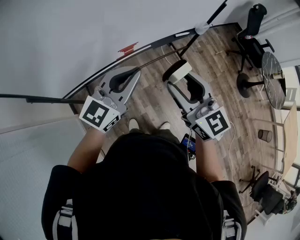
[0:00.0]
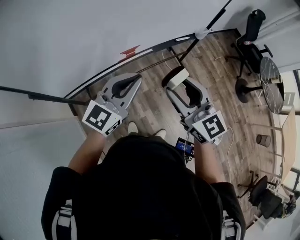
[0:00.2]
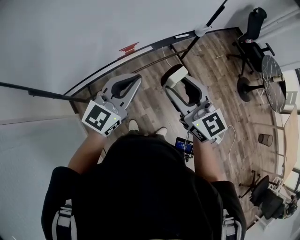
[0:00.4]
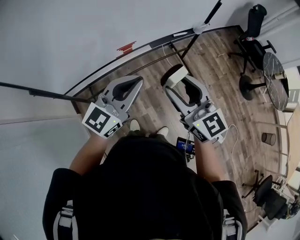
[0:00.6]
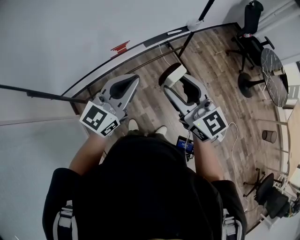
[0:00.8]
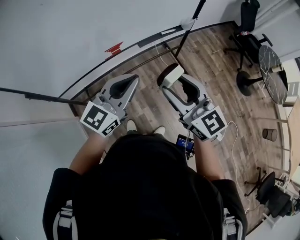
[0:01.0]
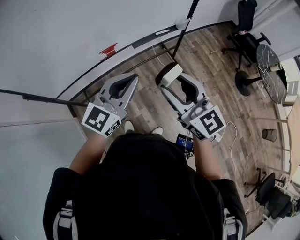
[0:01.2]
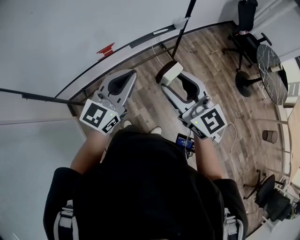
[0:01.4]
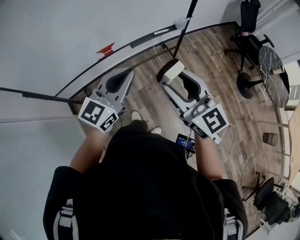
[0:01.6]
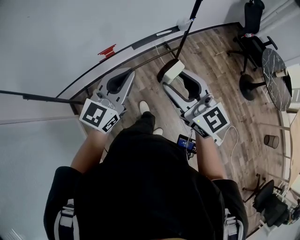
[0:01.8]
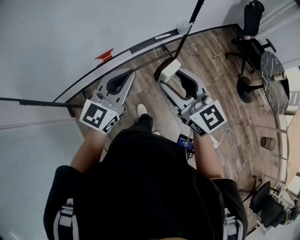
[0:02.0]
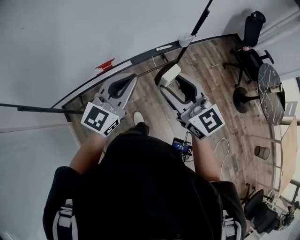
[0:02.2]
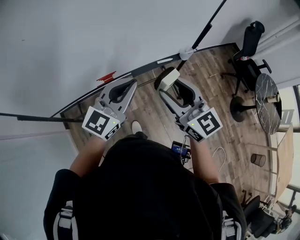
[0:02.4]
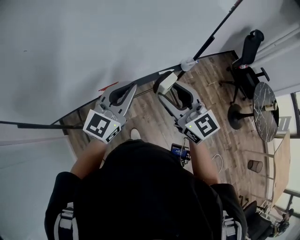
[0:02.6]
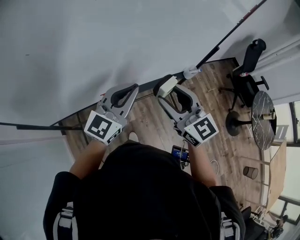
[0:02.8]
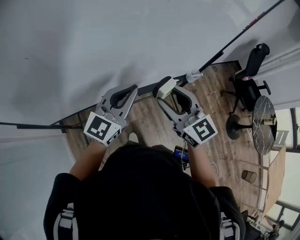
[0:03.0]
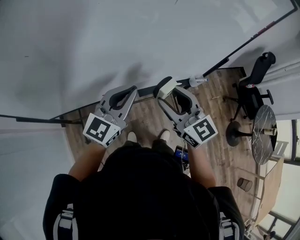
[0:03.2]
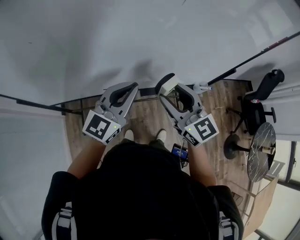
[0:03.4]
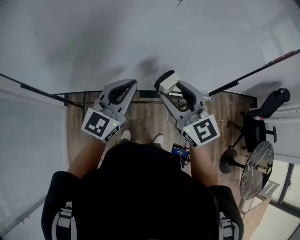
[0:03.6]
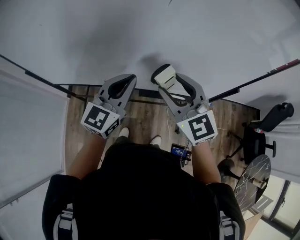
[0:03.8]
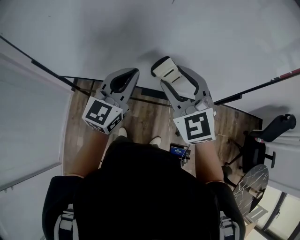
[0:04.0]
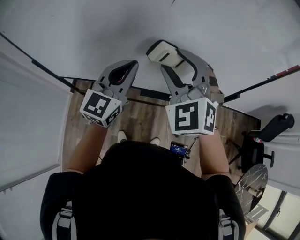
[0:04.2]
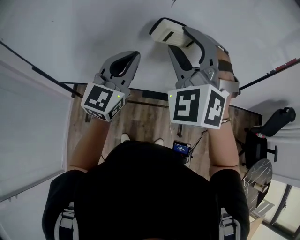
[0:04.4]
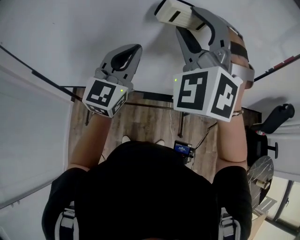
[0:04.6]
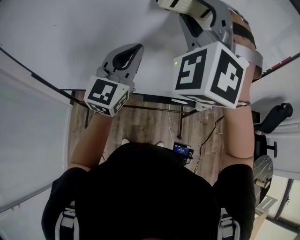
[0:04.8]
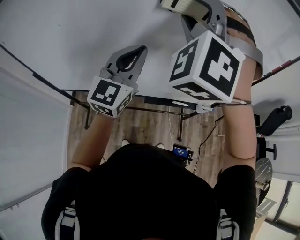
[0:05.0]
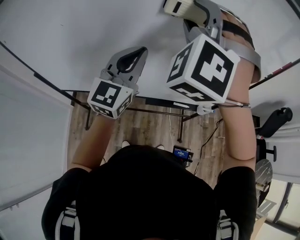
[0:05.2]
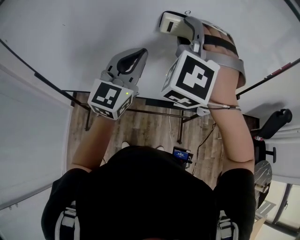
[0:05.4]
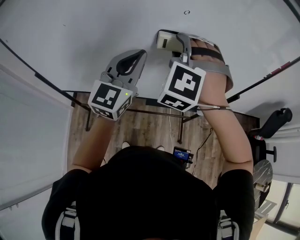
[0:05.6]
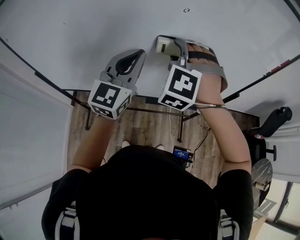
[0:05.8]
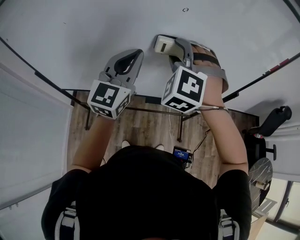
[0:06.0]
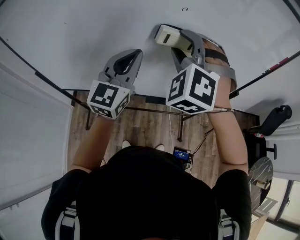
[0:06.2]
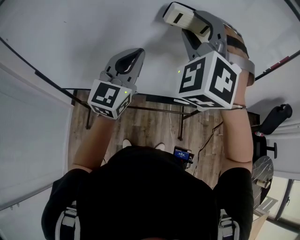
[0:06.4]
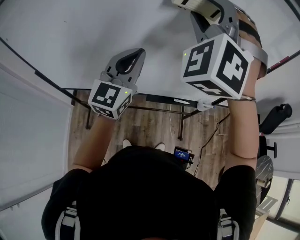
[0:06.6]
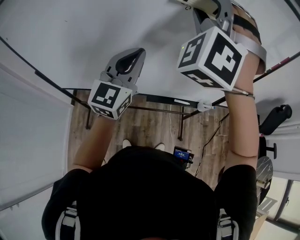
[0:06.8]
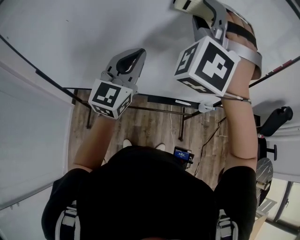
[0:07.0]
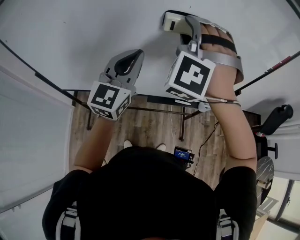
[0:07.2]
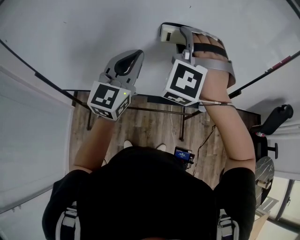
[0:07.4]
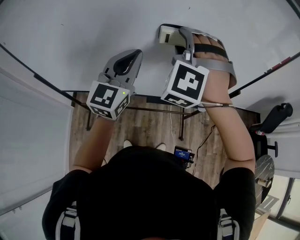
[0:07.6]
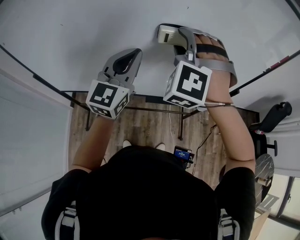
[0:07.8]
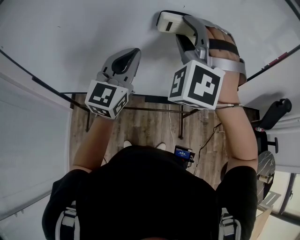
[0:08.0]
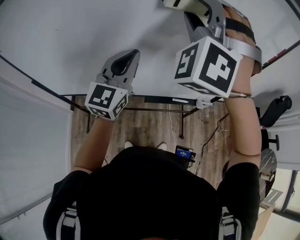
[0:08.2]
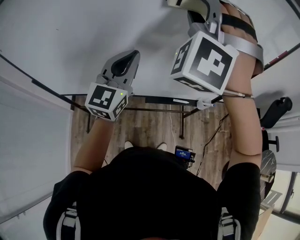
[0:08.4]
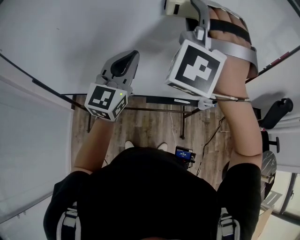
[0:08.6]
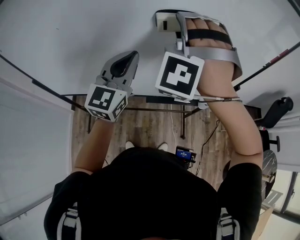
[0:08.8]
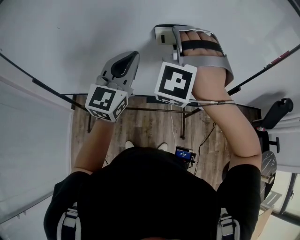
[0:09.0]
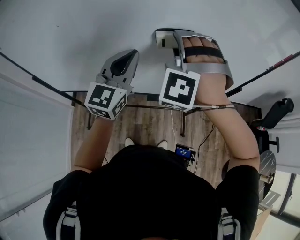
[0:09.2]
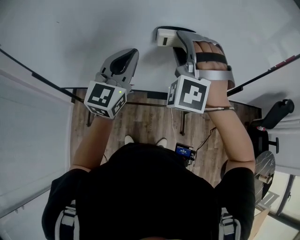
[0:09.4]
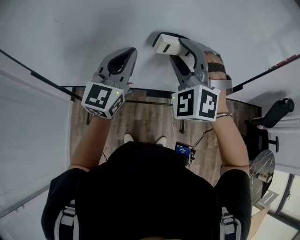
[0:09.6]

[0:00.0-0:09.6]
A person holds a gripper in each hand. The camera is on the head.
0:00.0 to 0:01.6: The two grippers go some 20 cm to the right.
0:01.6 to 0:03.2: Both grippers travel together forward, some 30 cm.
0:03.2 to 0:04.8: The right gripper goes about 30 cm upward and forward, and rotates around the line of its fingers by roughly 80 degrees, counterclockwise from behind, while the left gripper is displaced upward and forward by approximately 15 cm, and turns by approximately 30 degrees.
0:04.8 to 0:06.4: The right gripper reaches about 15 cm downward, then returns.
0:06.4 to 0:08.0: The right gripper moves up and down over some 15 cm, changing direction 2 times.
0:08.0 to 0:09.6: The right gripper travels downward by some 10 cm.

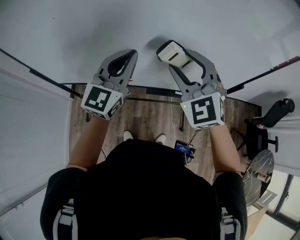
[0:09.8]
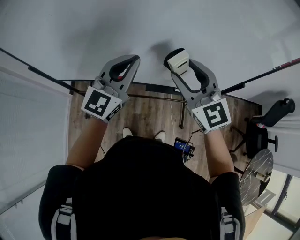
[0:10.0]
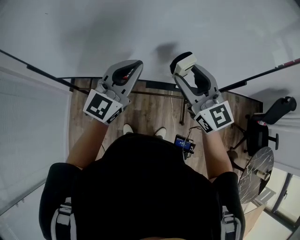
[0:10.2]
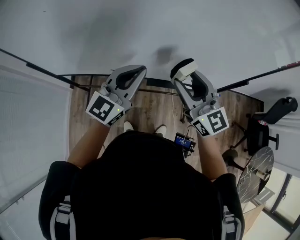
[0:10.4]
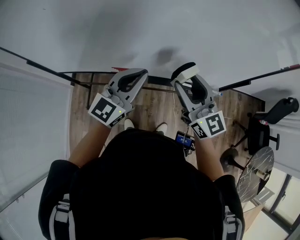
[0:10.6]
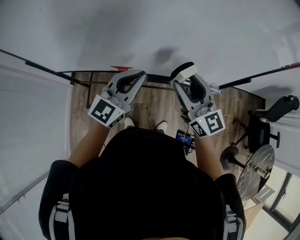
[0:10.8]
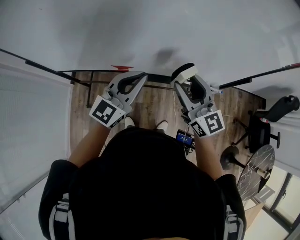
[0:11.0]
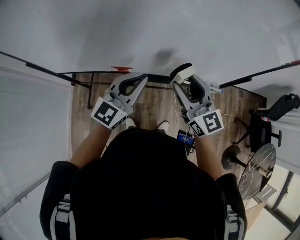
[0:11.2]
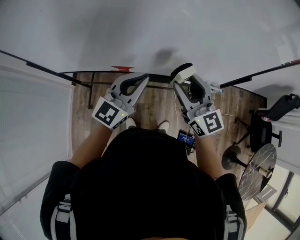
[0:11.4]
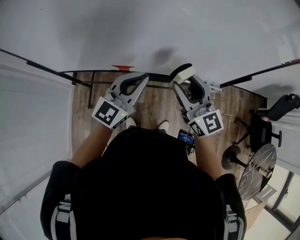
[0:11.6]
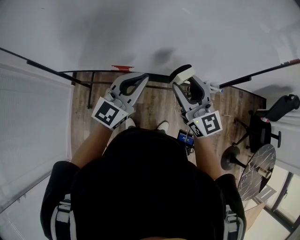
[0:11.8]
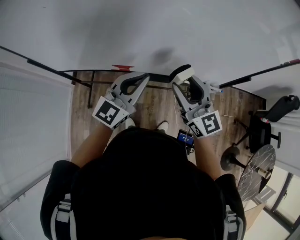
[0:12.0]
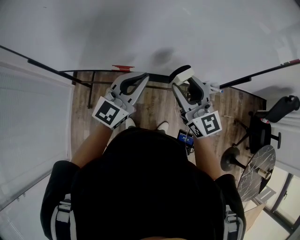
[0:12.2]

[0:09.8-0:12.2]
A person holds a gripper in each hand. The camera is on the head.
0:09.8 to 0:11.0: The right gripper moves downward and to the right, about 10 cm, and twists some 50 degrees clockwise, seen from behind; the left gripper travels downward and backward by roughly 10 cm.
0:11.0 to 0:12.2: The grippers make only small movements.

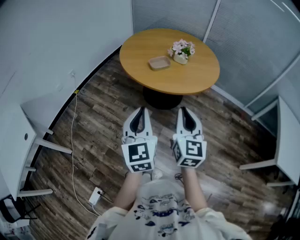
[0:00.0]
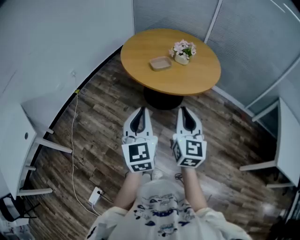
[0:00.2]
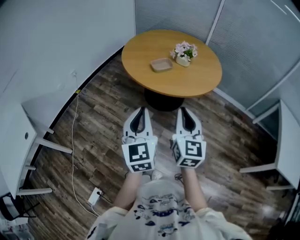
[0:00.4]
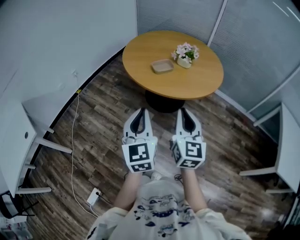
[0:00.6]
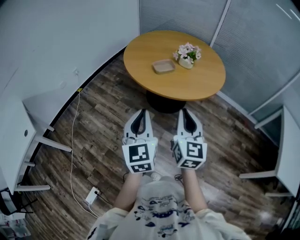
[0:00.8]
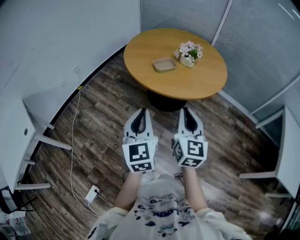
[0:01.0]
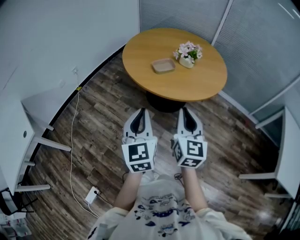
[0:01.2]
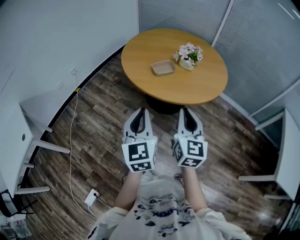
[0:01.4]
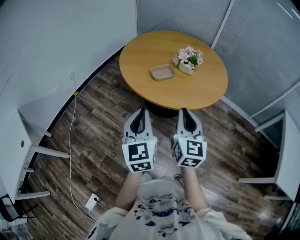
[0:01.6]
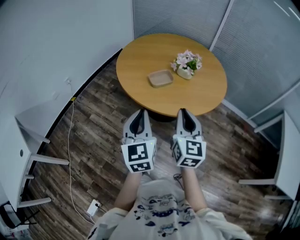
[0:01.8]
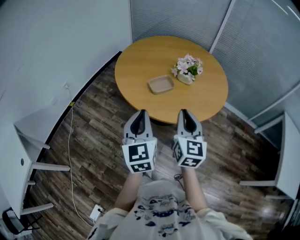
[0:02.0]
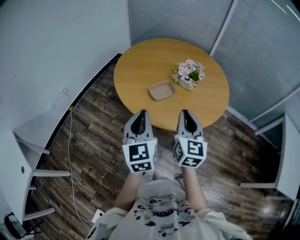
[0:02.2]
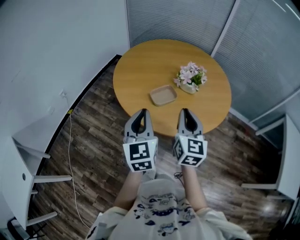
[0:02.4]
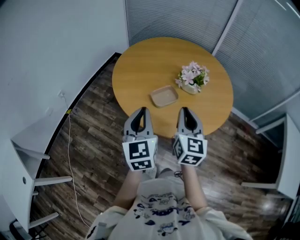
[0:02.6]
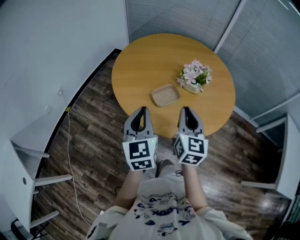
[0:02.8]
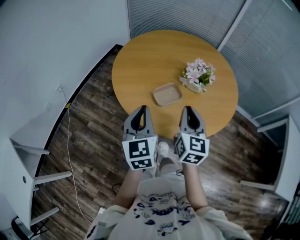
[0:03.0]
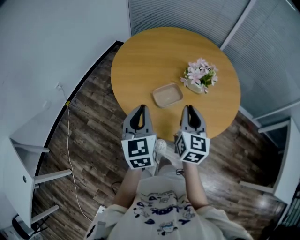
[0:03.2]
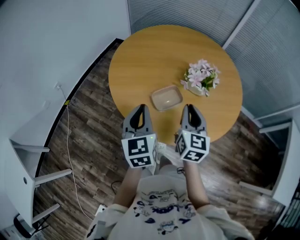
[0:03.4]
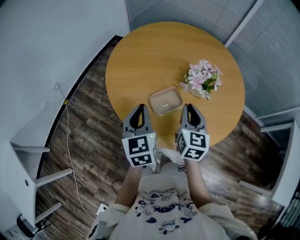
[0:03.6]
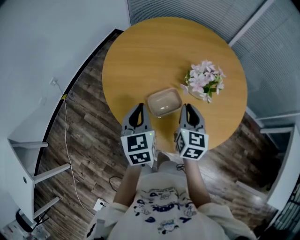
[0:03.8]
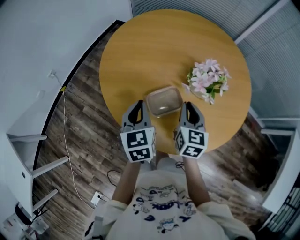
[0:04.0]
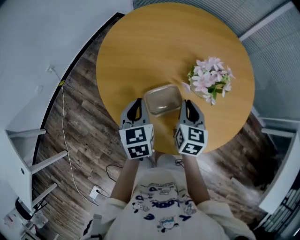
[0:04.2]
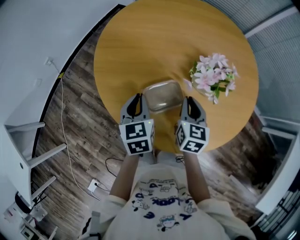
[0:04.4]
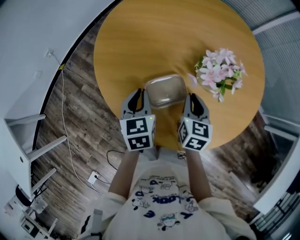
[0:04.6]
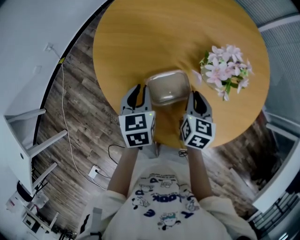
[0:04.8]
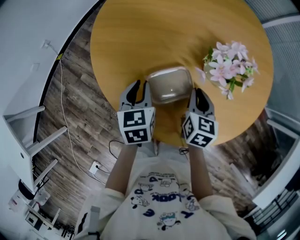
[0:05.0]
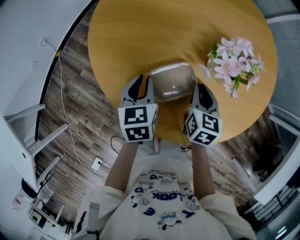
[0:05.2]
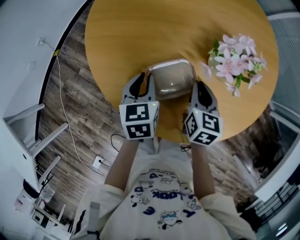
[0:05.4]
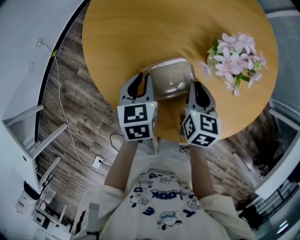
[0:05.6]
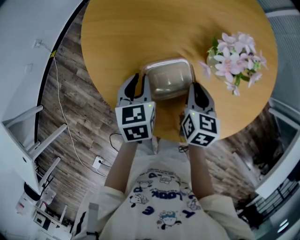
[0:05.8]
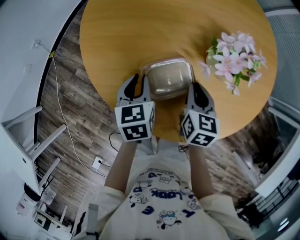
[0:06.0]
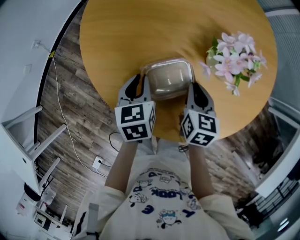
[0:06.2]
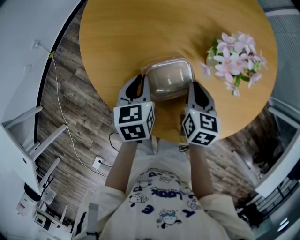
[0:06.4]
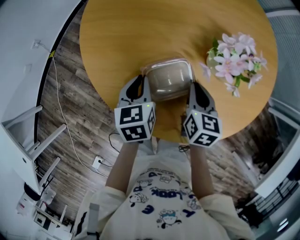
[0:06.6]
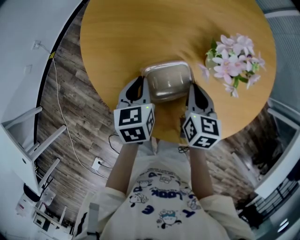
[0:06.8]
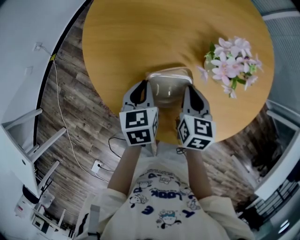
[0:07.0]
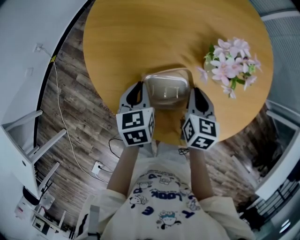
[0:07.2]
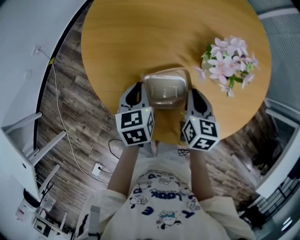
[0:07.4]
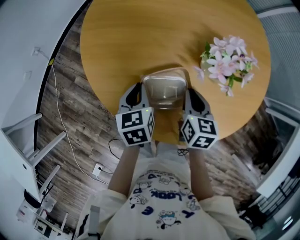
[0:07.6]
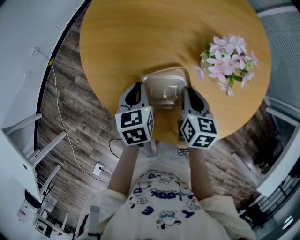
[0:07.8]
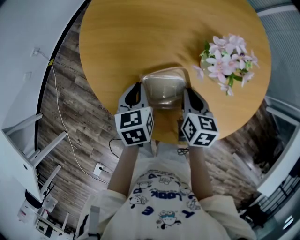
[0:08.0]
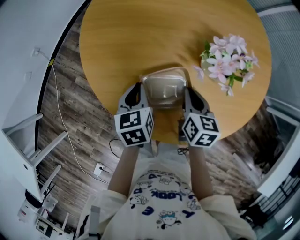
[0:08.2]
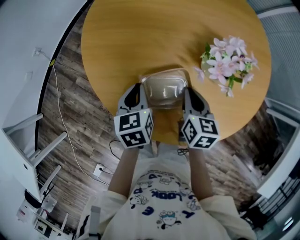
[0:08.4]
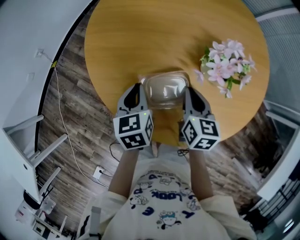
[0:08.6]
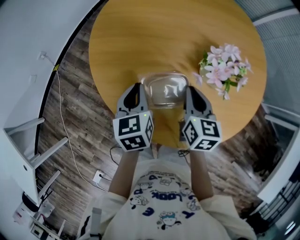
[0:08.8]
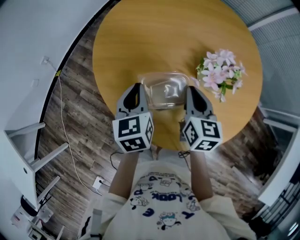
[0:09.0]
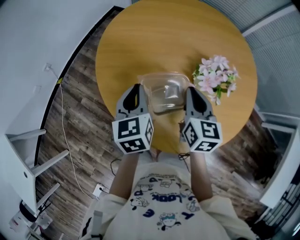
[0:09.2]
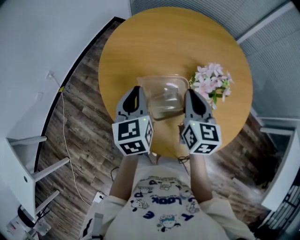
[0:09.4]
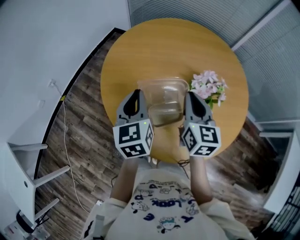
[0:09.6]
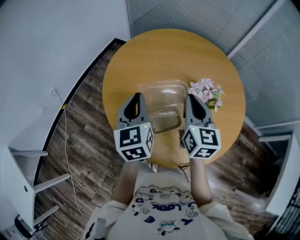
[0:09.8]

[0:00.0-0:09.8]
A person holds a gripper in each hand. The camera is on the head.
0:00.0 to 0:01.4: Both grippers travel together forward, roughly 10 cm.
0:01.4 to 0:02.8: Both grippers travel together forward, some 30 cm.
0:02.8 to 0:04.2: The two grippers go approximately 25 cm forward and downward. The right gripper swivels some 20 degrees, while the left gripper swivels some 30 degrees.
0:04.2 to 0:05.6: Both grippers travel together downward, about 10 cm.
0:05.6 to 0:08.4: There are only small adjustments of the grippers.
0:08.4 to 0:09.8: Both grippers move upward, some 25 cm. The left gripper rotates roughly 30 degrees. Meanwhile the right gripper swivels roughly 30 degrees.

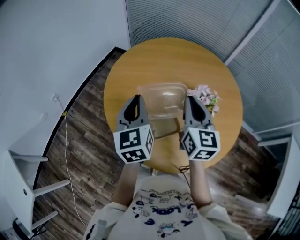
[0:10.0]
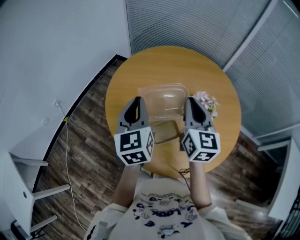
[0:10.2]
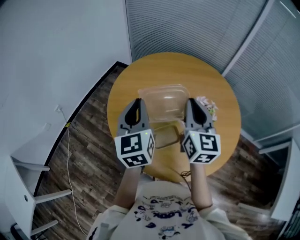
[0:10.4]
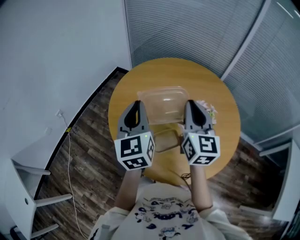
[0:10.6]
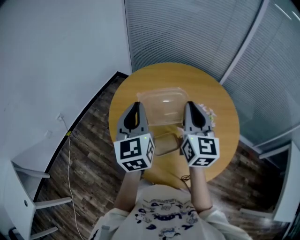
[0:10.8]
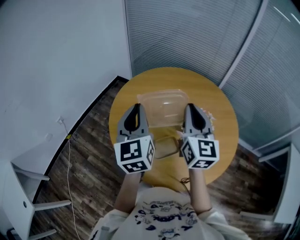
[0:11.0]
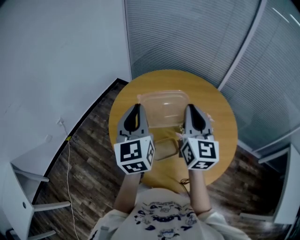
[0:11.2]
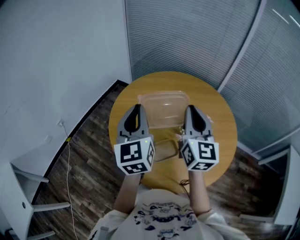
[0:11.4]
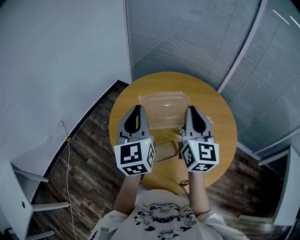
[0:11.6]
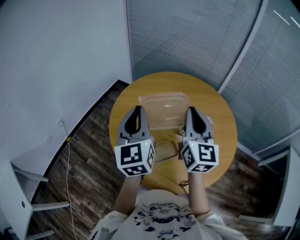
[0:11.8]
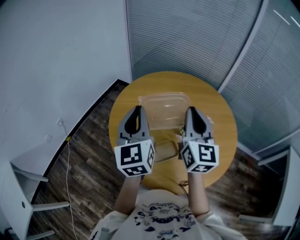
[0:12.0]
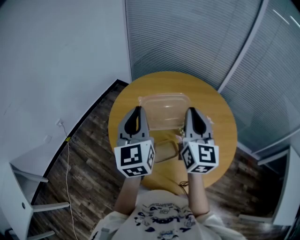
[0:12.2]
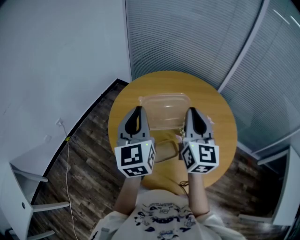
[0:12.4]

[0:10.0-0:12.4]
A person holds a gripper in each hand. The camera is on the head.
0:10.0 to 0:11.2: The two grippers go about 10 cm upward.
0:11.2 to 0:12.4: Both grippers stay about where they are.
